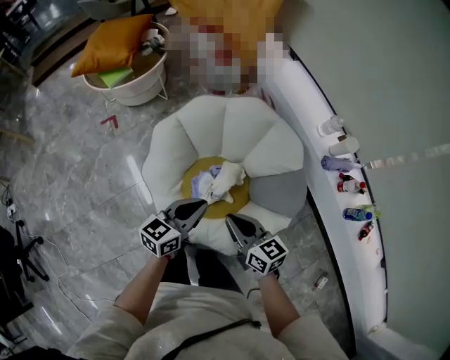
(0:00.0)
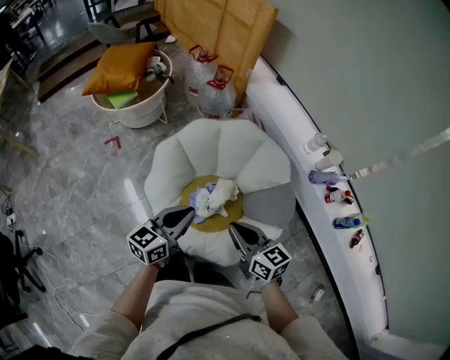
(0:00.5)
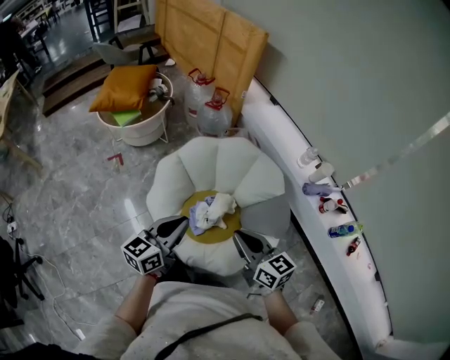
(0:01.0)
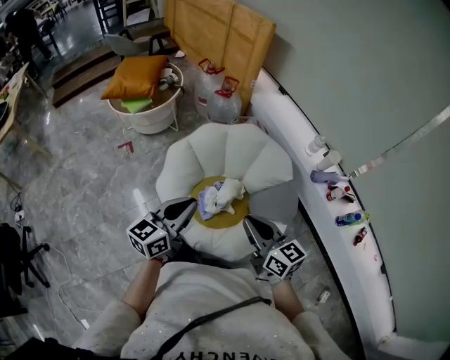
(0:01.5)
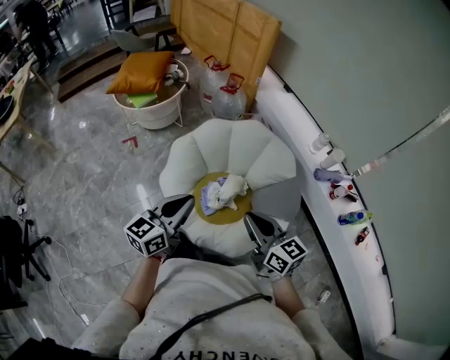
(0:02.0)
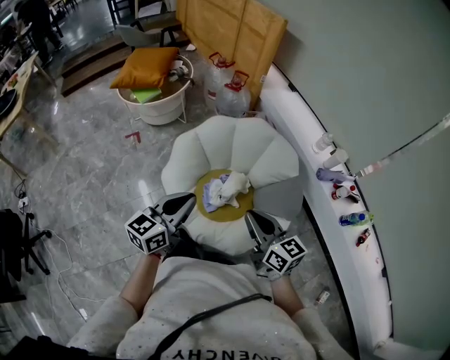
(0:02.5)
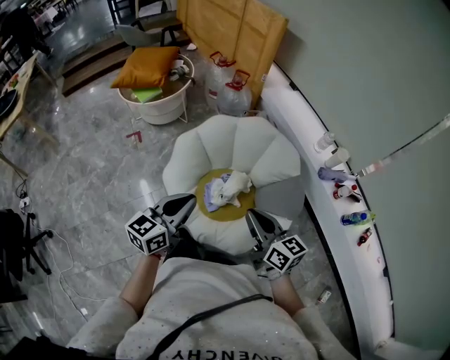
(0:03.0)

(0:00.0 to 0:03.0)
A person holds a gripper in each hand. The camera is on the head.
0:00.0 - 0:01.5: Both grippers travel together upward and backward, some 20 cm.
0:01.5 - 0:03.0: The grippers move only a little.

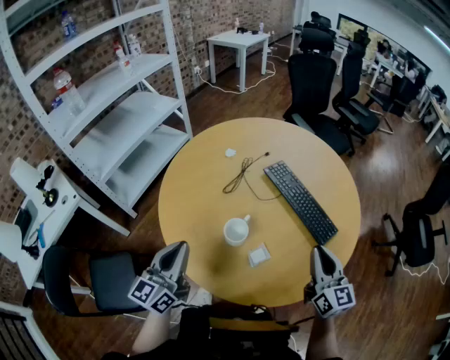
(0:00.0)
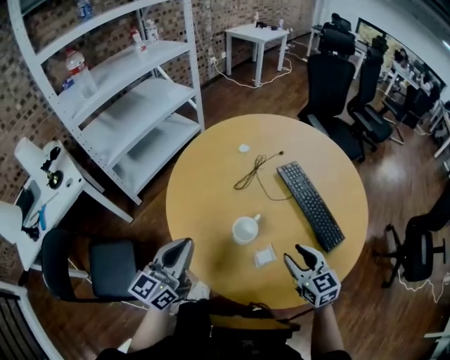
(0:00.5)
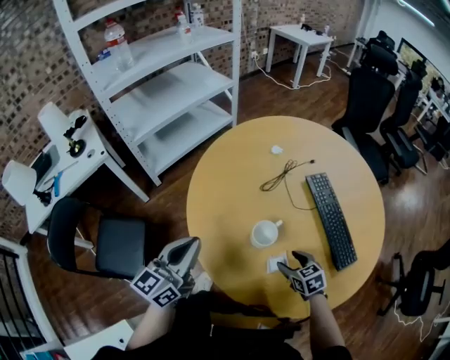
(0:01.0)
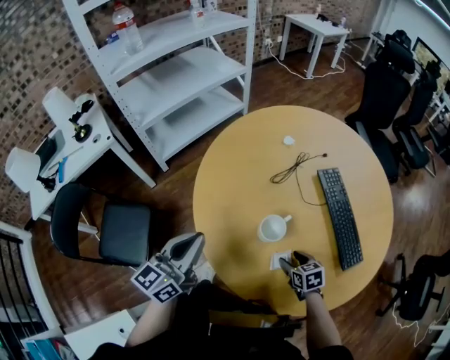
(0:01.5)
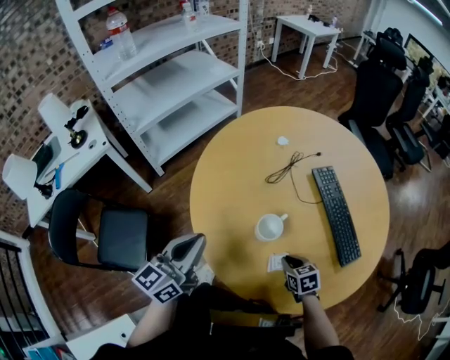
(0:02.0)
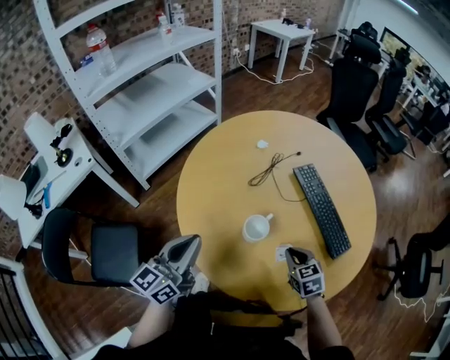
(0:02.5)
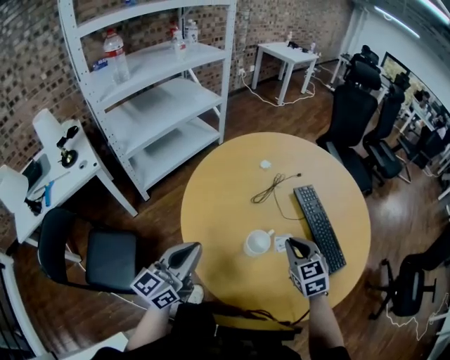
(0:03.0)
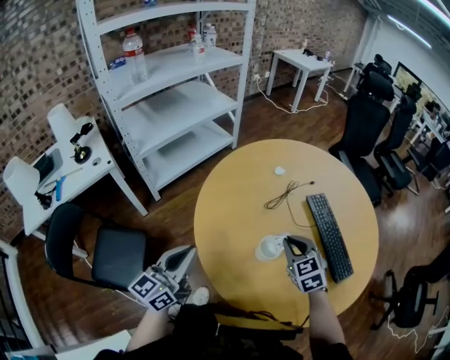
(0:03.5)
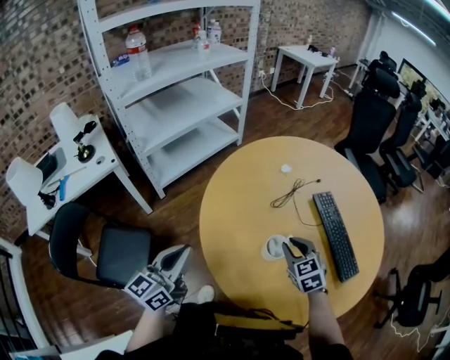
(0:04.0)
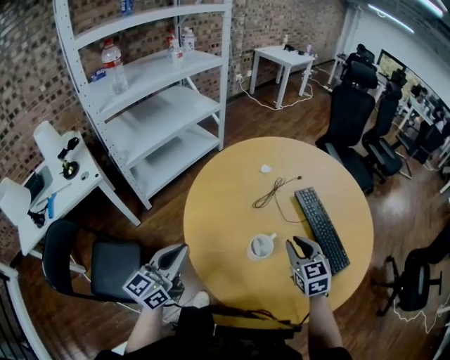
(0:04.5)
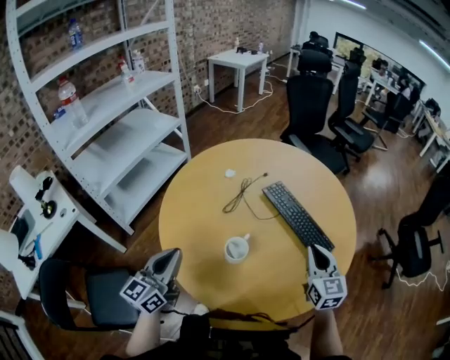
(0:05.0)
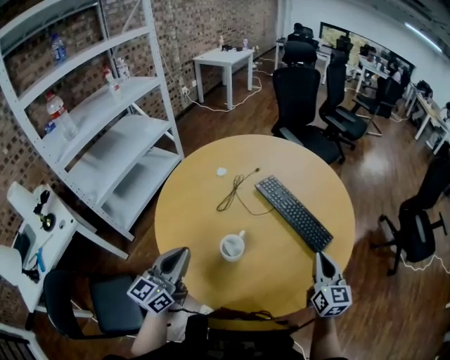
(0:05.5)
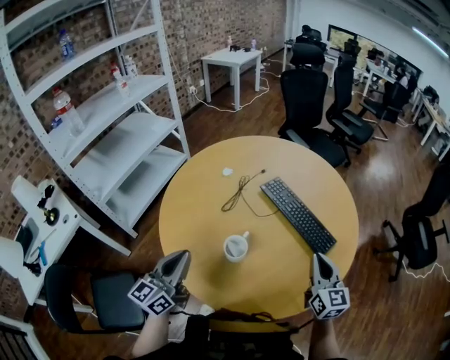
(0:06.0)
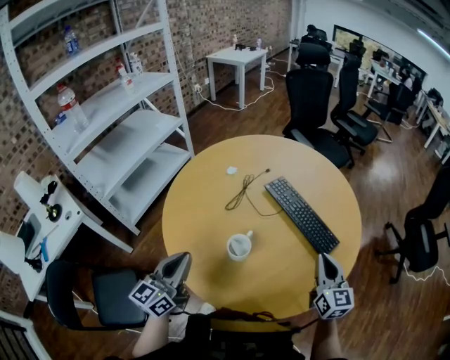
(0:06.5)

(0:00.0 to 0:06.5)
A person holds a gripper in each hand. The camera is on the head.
0:00.0 - 0:02.0: The right gripper goes some 25 cm downward and to the left, tips its fingers downward by roughly 50 degrees, and opens and closes again.
0:02.0 - 0:04.5: The left gripper heads to the left, covering some 5 cm. Meanwhile the right gripper goes up and down, roughly 20 cm each way, reversing 2 times, and swivels approximately 30 degrees.
0:04.5 - 0:06.5: The left gripper is displaced to the right by about 10 cm, while the right gripper moves to the right, some 20 cm, and swivels approximately 40 degrees.

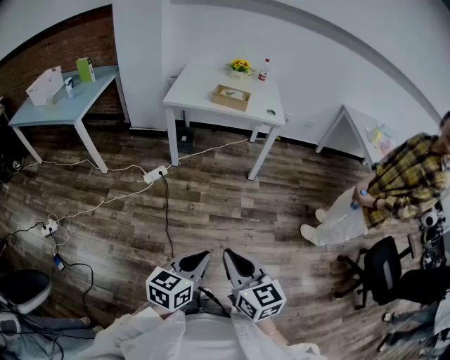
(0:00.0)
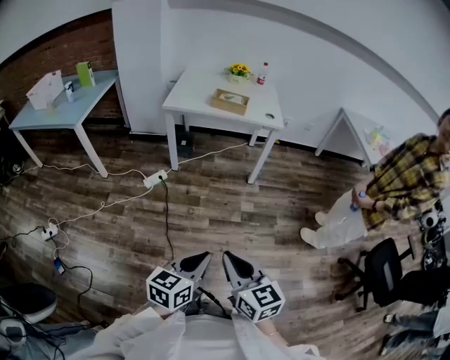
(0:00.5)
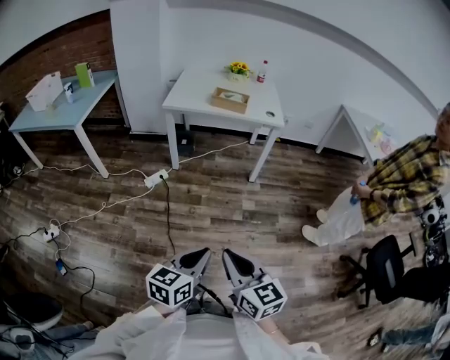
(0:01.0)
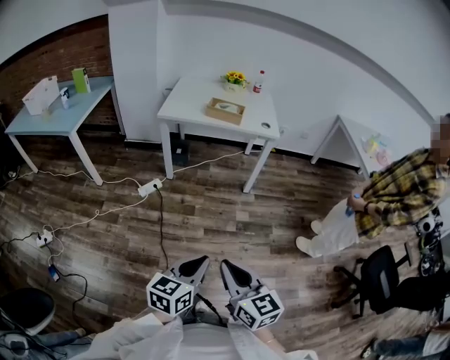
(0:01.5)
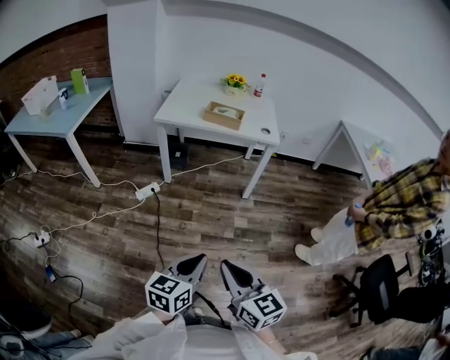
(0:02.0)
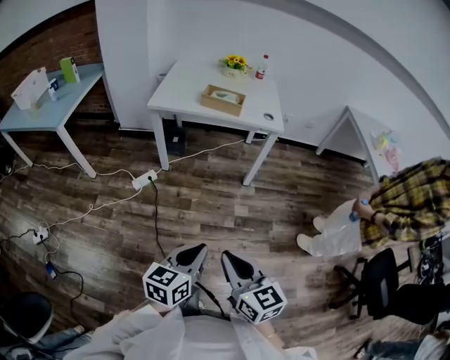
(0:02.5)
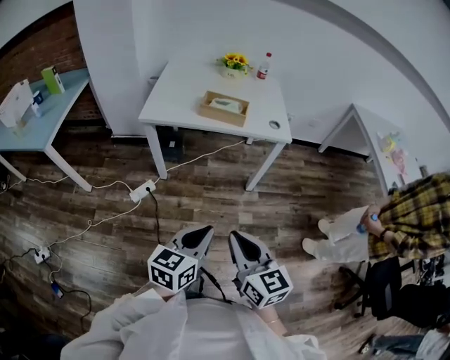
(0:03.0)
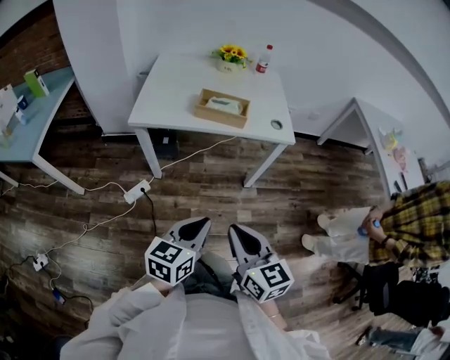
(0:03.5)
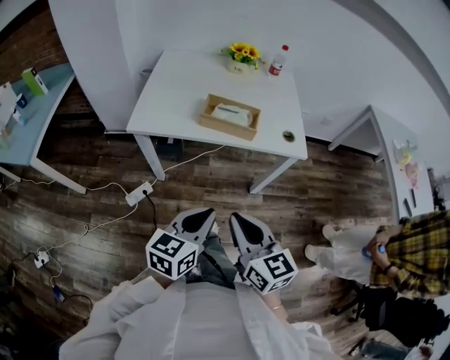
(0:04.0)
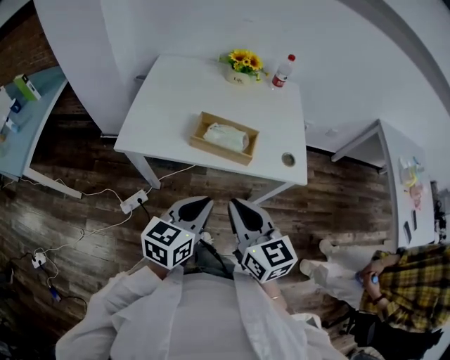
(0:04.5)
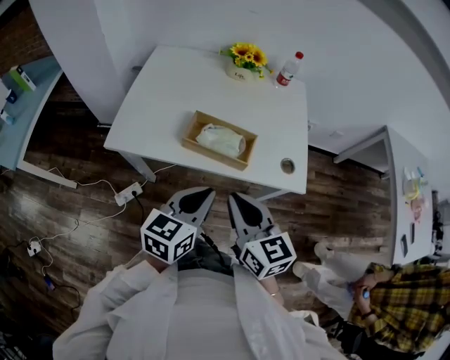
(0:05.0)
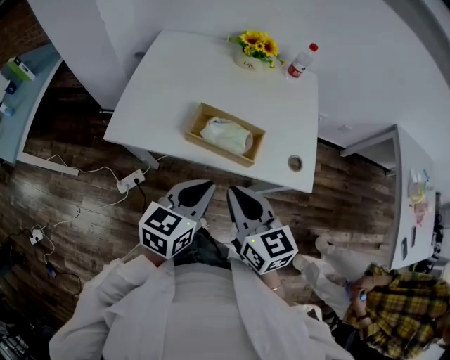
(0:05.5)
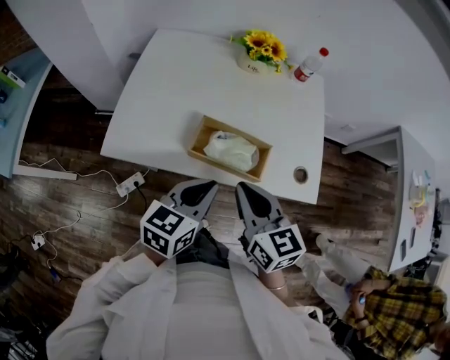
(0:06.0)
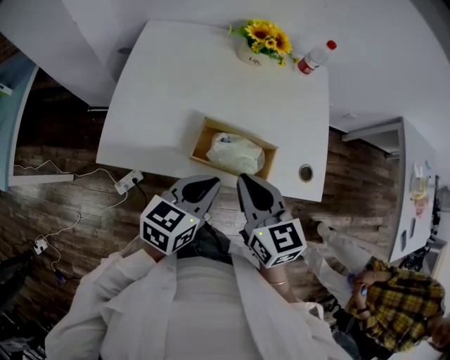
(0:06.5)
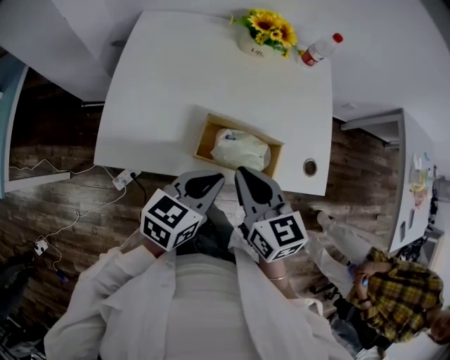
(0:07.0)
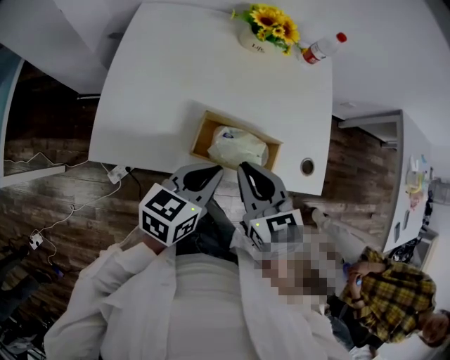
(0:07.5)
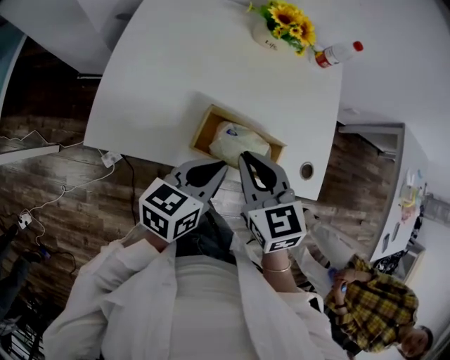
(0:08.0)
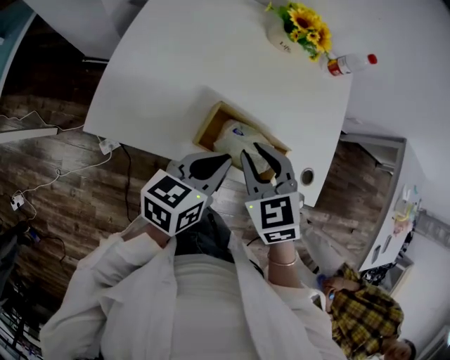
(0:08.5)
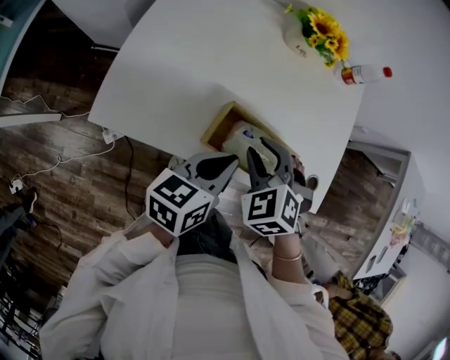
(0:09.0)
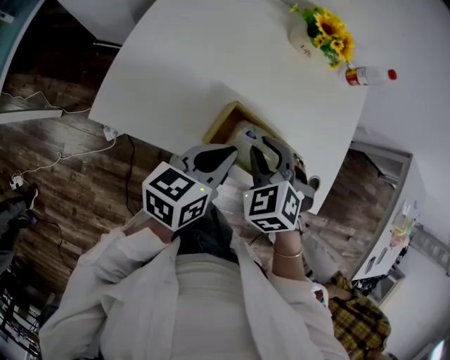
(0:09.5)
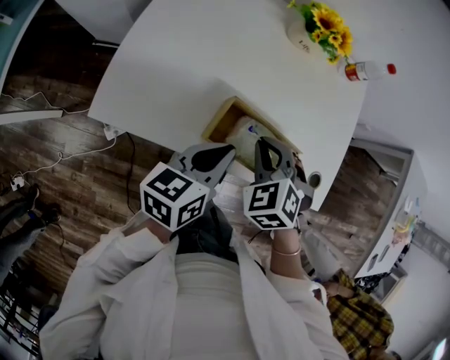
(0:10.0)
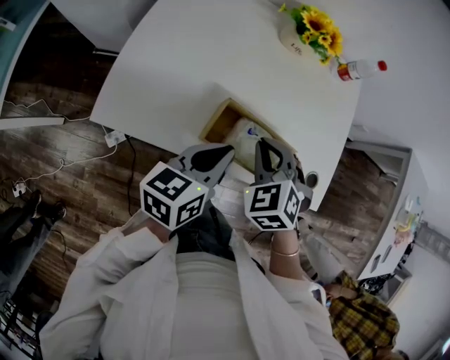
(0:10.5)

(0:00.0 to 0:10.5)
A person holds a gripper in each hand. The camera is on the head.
0:00.0 - 0:02.0: The two grippers go approximately 10 cm forward.
0:02.0 - 0:04.0: The pair of grippers is taken forward, approximately 40 cm.
0:04.0 - 0:06.5: The two grippers go about 30 cm forward.
0:06.5 - 0:08.5: The right gripper travels downward and forward by approximately 10 cm, and changes its angle by roughly 40 degrees.

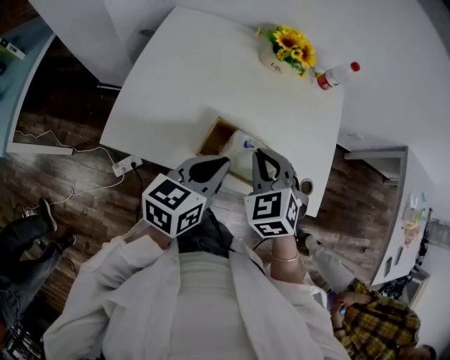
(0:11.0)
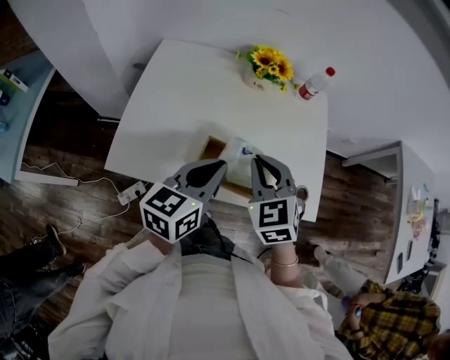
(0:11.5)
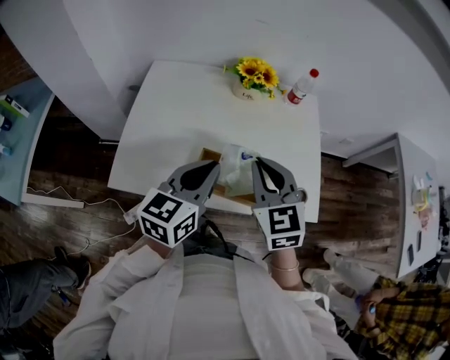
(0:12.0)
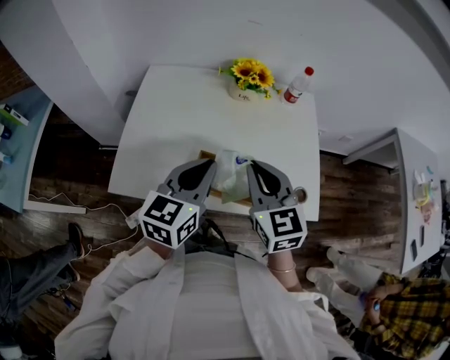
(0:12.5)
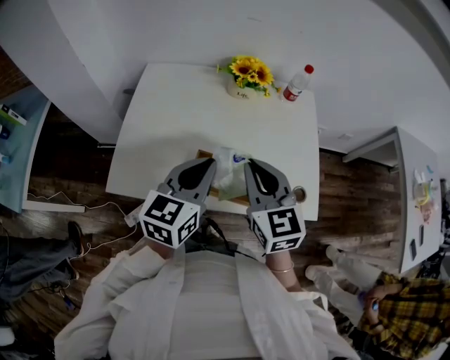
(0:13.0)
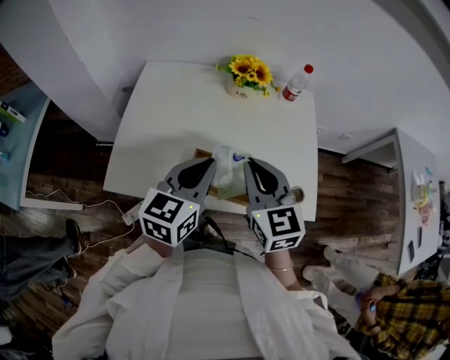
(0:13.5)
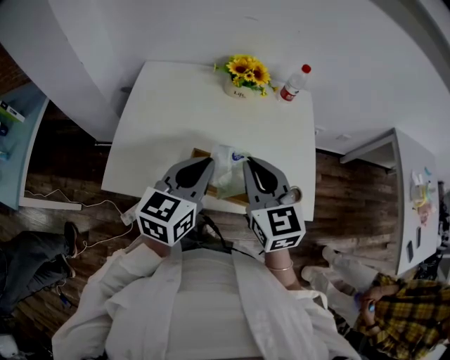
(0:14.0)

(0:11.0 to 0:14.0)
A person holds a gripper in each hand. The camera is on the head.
0:11.0 - 0:12.5: The two grippers go roughly 10 cm upward. The right gripper swivels about 40 degrees.
0:12.5 - 0:14.0: The grippers stay close to where they were, moving slightly.

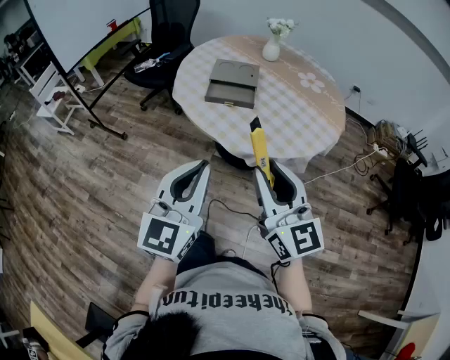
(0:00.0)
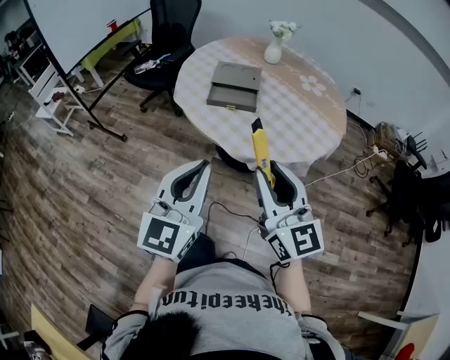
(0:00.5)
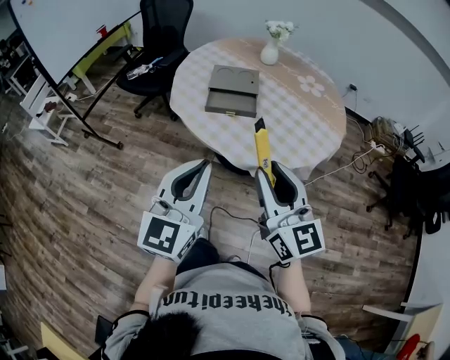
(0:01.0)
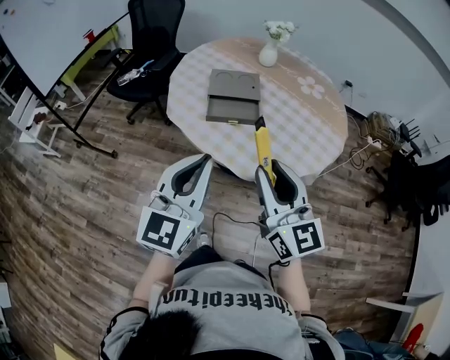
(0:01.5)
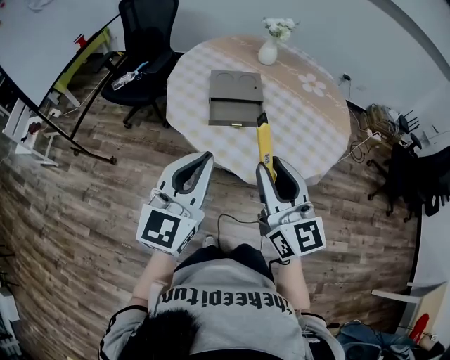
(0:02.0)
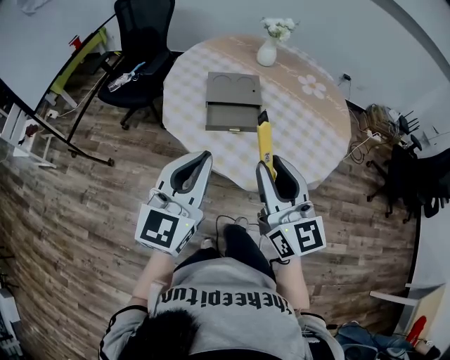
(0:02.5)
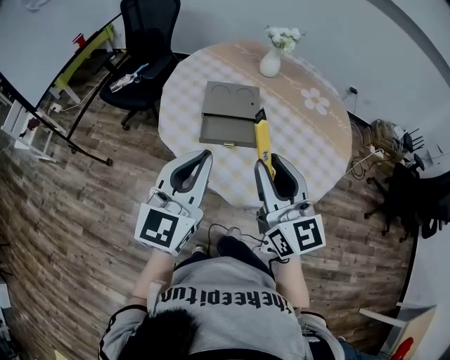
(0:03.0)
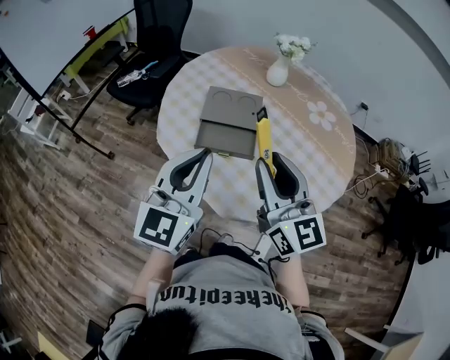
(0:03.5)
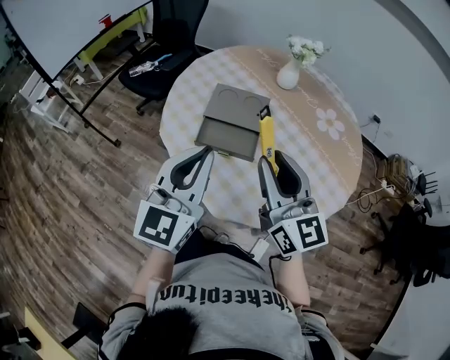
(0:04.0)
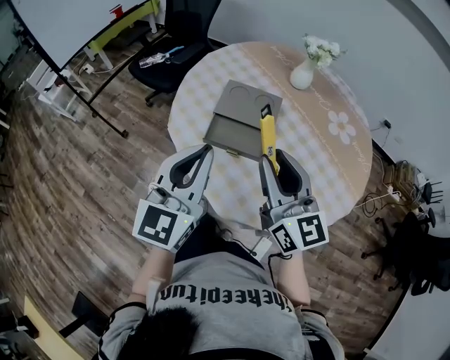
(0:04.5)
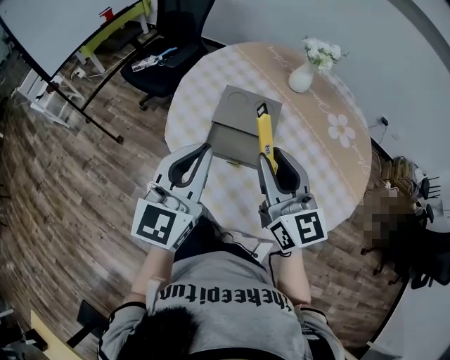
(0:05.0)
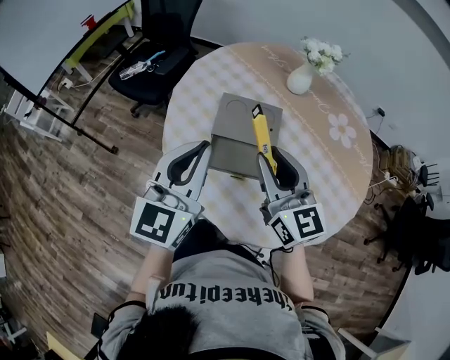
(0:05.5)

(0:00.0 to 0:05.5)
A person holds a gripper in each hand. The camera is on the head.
0:00.0 - 0:02.0: The grippers both shift forward and to the left by some 15 cm.
0:02.0 - 0:03.5: The grippers both shift forward and to the right by about 15 cm.
0:03.5 - 0:05.5: Both grippers travel together forward, about 15 cm.
